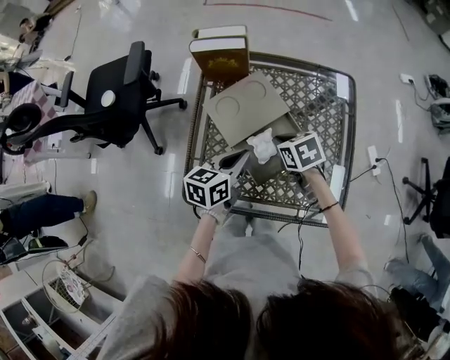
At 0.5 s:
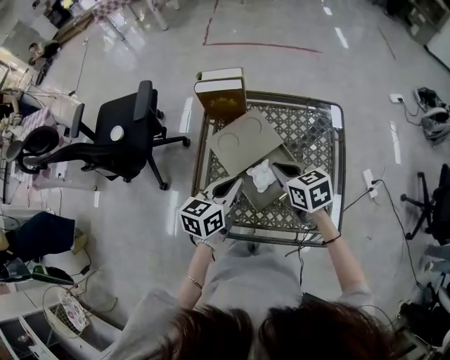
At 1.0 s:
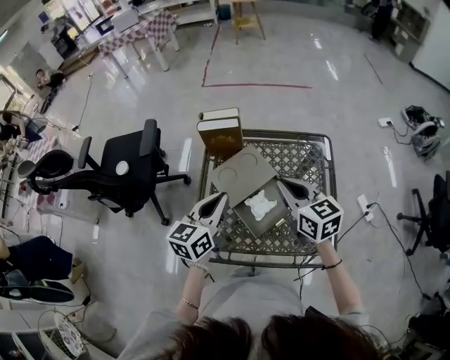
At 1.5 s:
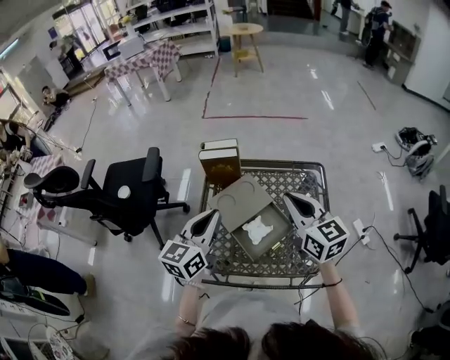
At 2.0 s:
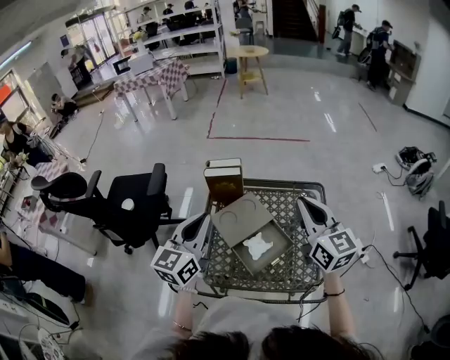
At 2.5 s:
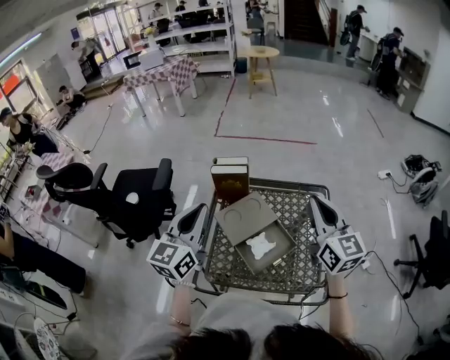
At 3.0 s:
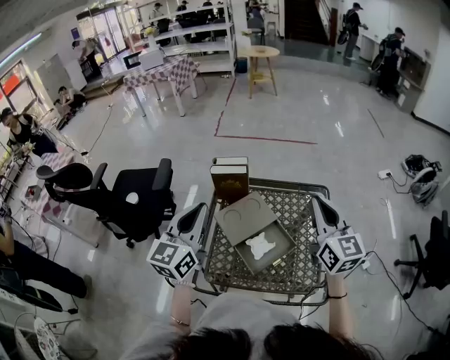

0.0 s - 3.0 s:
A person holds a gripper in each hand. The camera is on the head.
0.0 s - 1.5 s: Both grippers move upward, about 25 cm. The right gripper angles its fingers upward, by roughly 50 degrees. Meanwhile the left gripper swivels approximately 30 degrees.
1.5 s - 3.0 s: The left gripper goes approximately 10 cm upward, while the right gripper travels upward and to the right by roughly 10 cm.

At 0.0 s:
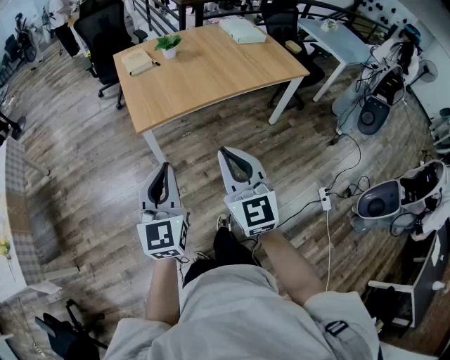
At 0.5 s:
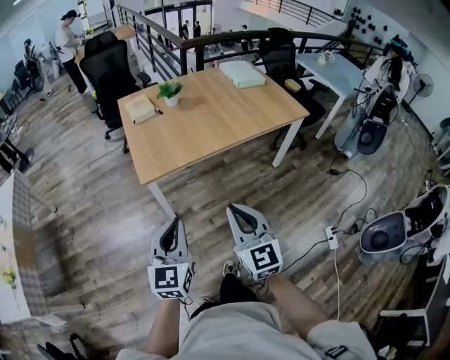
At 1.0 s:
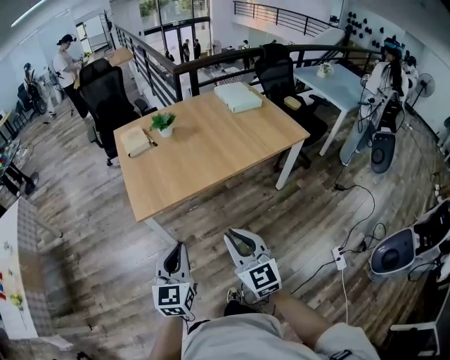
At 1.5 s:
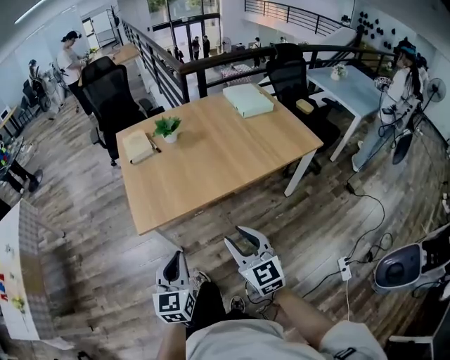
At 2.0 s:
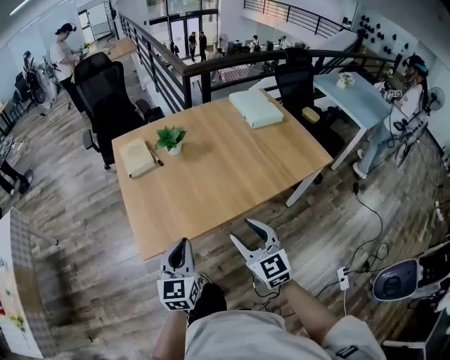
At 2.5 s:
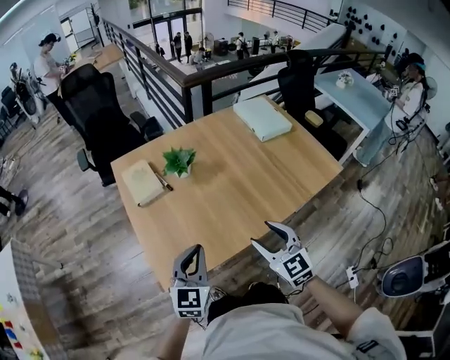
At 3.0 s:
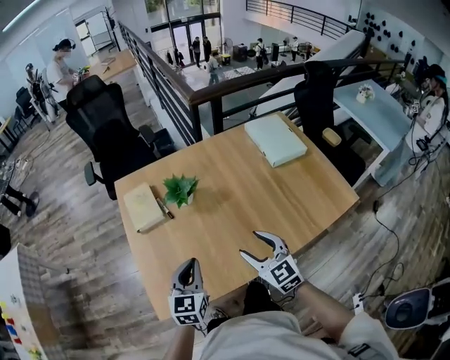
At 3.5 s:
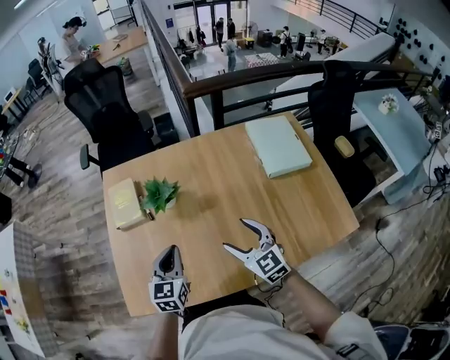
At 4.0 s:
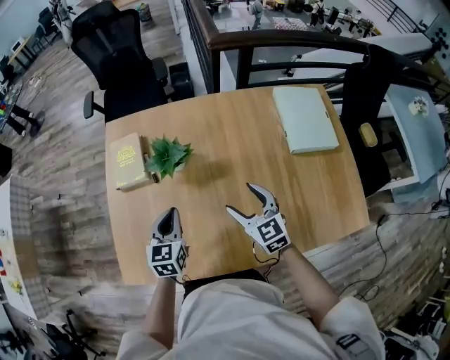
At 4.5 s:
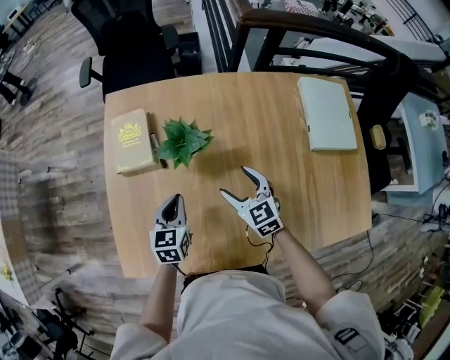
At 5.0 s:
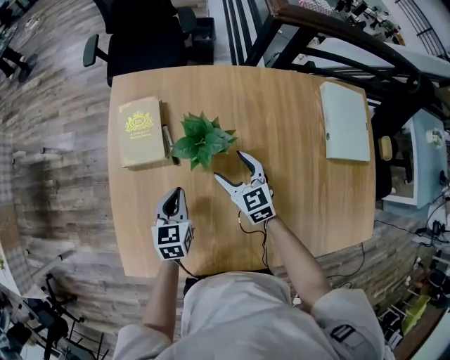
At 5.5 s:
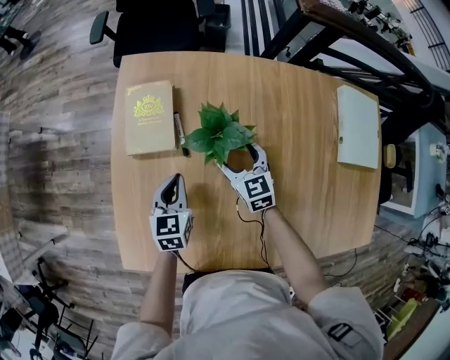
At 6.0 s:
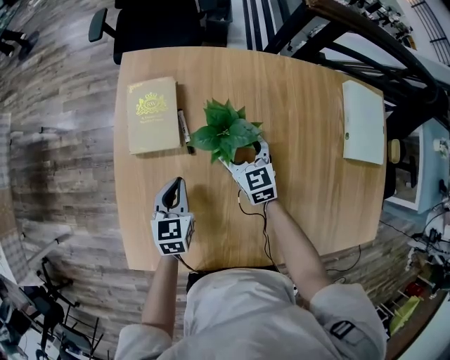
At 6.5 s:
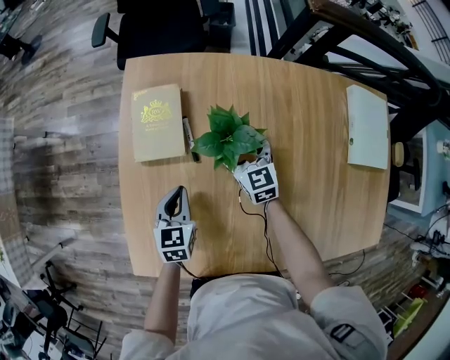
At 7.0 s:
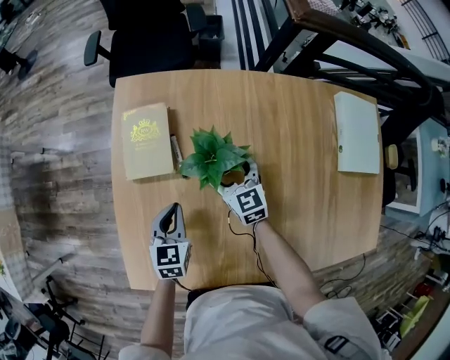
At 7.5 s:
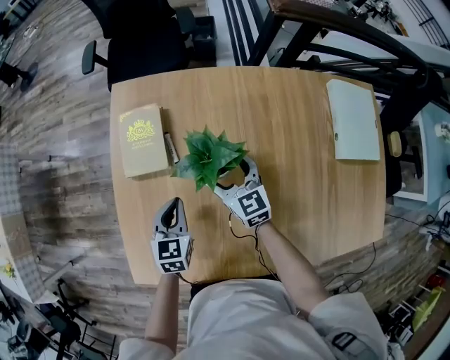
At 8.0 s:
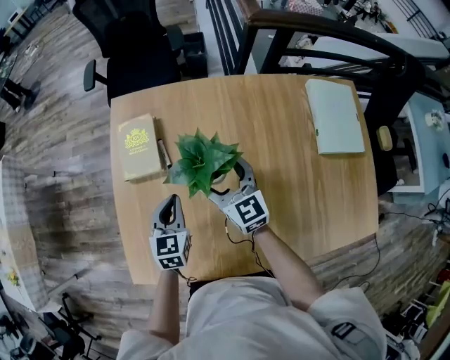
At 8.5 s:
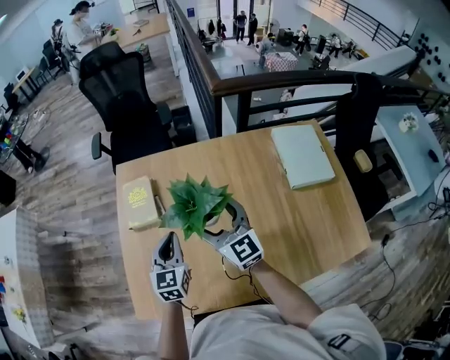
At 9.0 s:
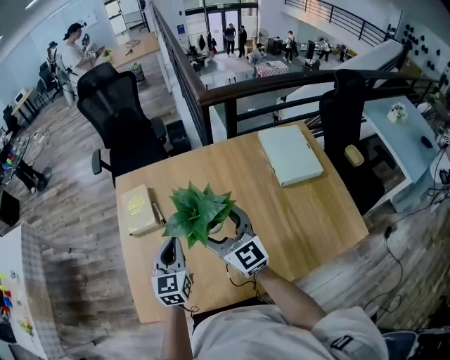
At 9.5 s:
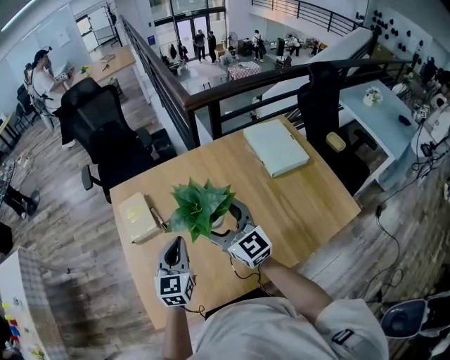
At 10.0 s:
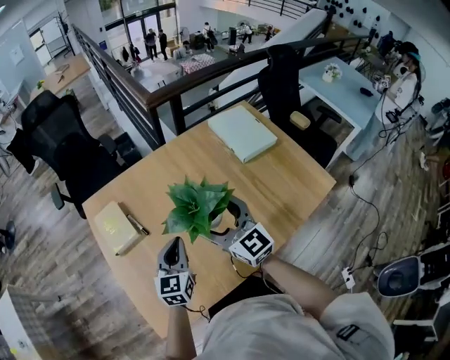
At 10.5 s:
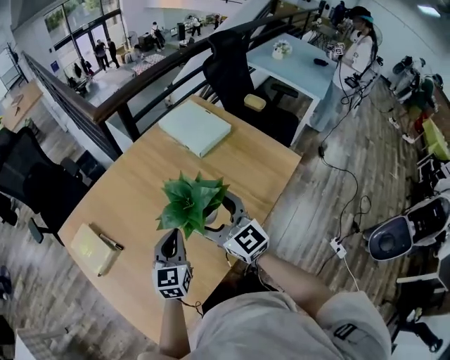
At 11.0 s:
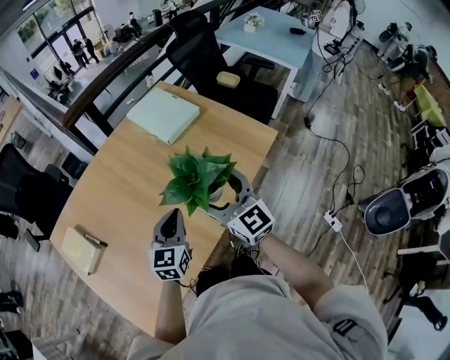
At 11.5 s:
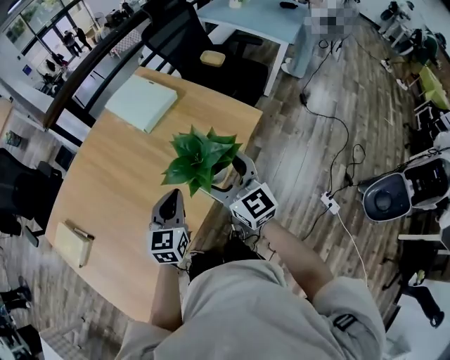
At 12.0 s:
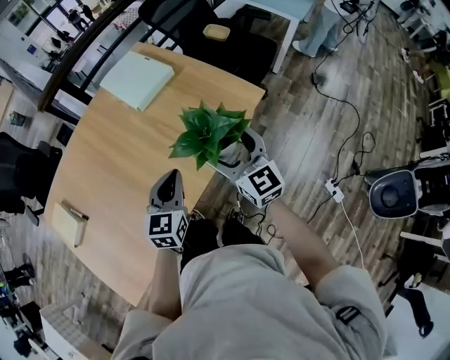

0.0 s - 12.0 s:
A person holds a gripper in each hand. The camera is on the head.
0.0 s - 2.0 s: Both grippers move forward, approximately 35 cm. The right gripper opens its fingers.
2.0 s - 4.0 s: The right gripper moves approximately 40 cm, and turns by approximately 20 degrees. The left gripper shifts by approximately 35 cm, and changes its angle by roughly 20 degrees.
4.0 s - 6.0 s: The right gripper heads forward, to the left and downward, covering roughly 30 cm, while the left gripper heads to the left, downward and forward, covering about 20 cm.
6.0 s - 8.0 s: The right gripper travels upward by roughly 15 cm. The left gripper goes about 10 cm upward and to the right.
8.0 s - 10.0 s: The left gripper moves upward, to the right and backward, about 15 cm, and swivels approximately 30 degrees, while the right gripper travels upward, backward and to the right by approximately 25 cm, and swivels about 20 degrees.
10.0 s - 12.0 s: The right gripper ends up some 40 cm from where it was, and turns by roughly 30 degrees; the left gripper moves about 40 cm, and rotates about 30 degrees.

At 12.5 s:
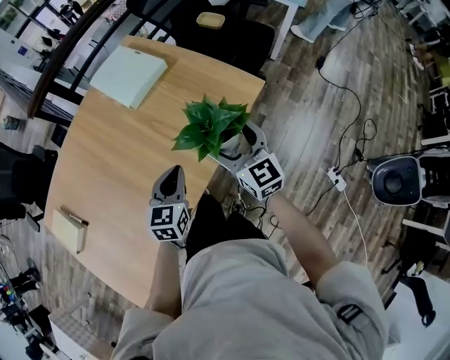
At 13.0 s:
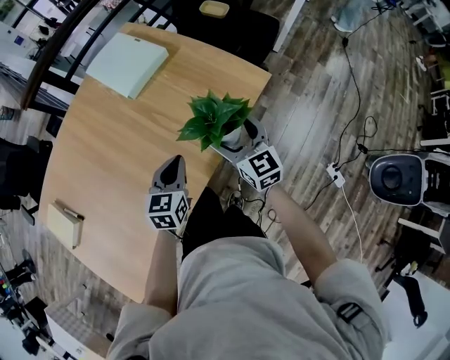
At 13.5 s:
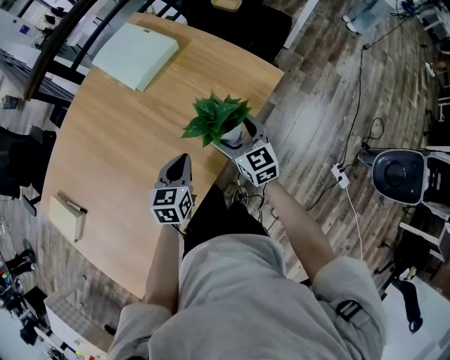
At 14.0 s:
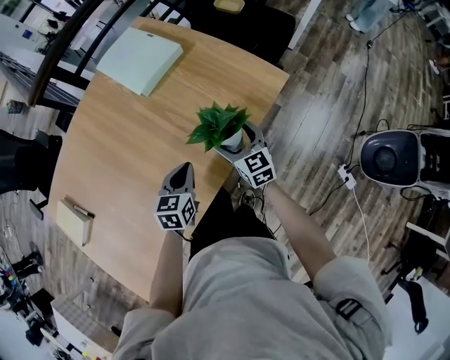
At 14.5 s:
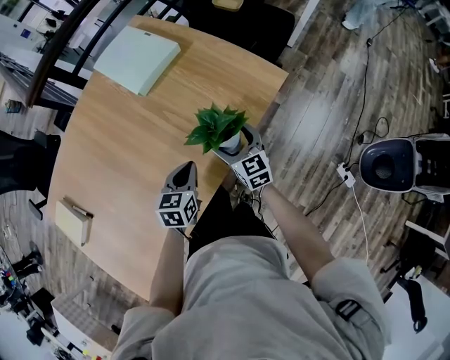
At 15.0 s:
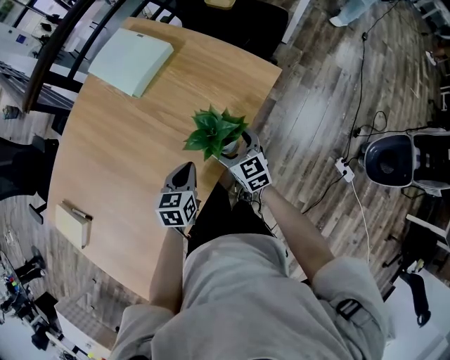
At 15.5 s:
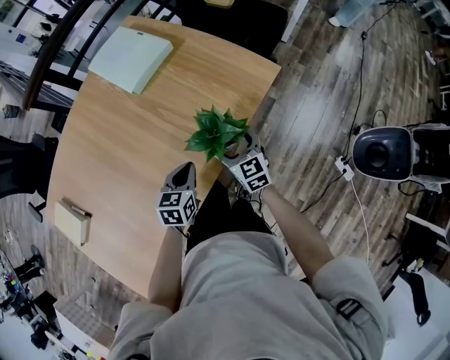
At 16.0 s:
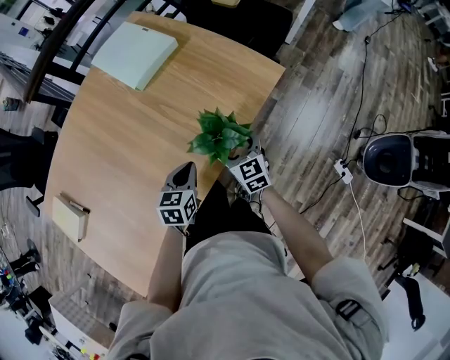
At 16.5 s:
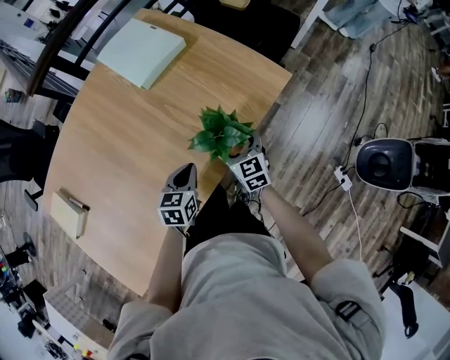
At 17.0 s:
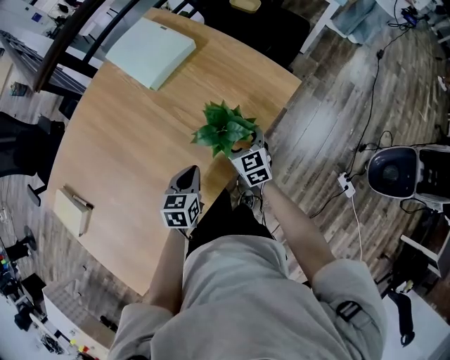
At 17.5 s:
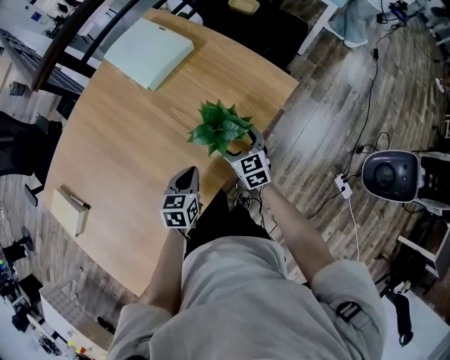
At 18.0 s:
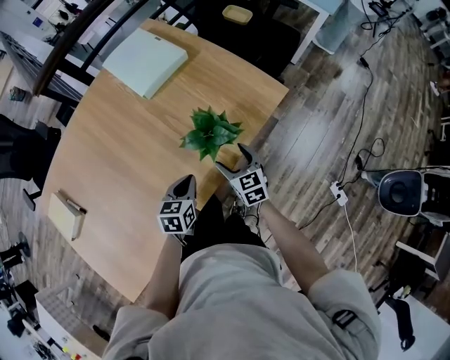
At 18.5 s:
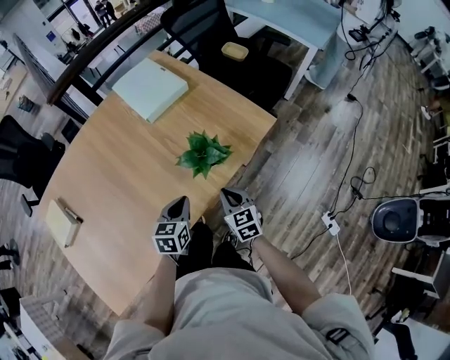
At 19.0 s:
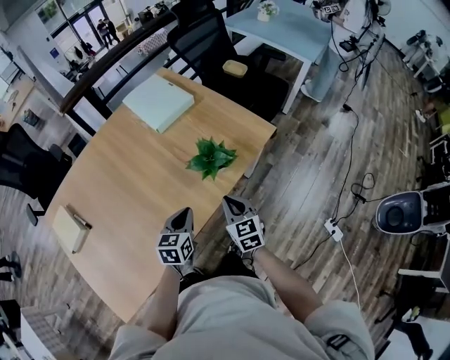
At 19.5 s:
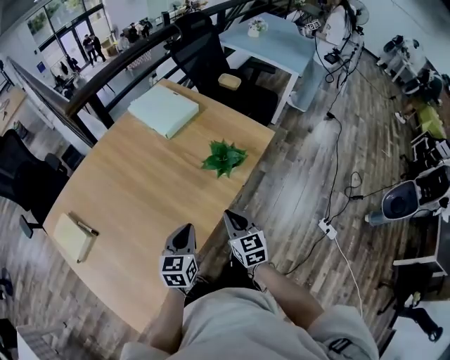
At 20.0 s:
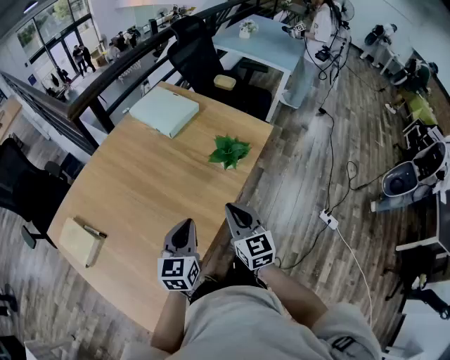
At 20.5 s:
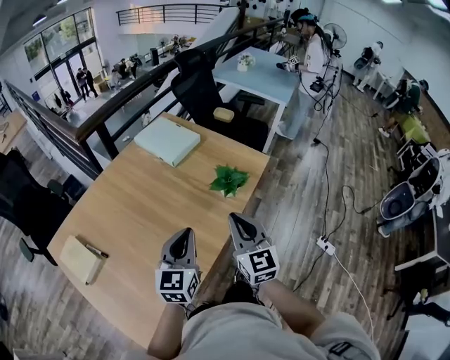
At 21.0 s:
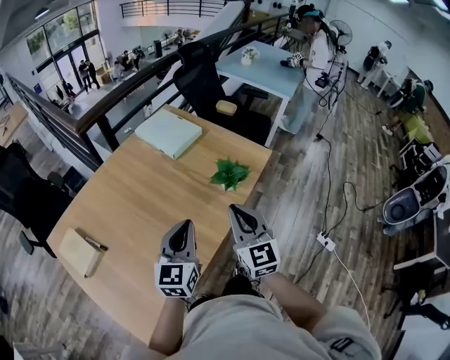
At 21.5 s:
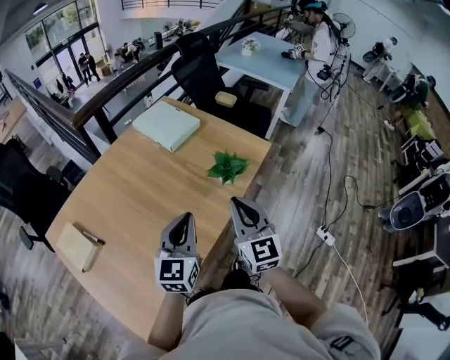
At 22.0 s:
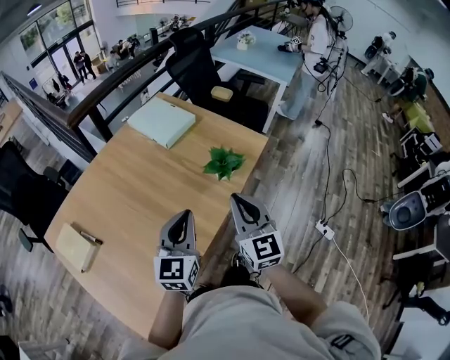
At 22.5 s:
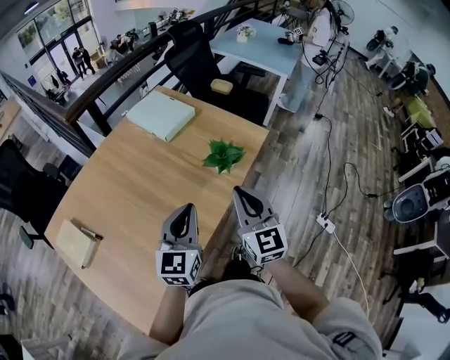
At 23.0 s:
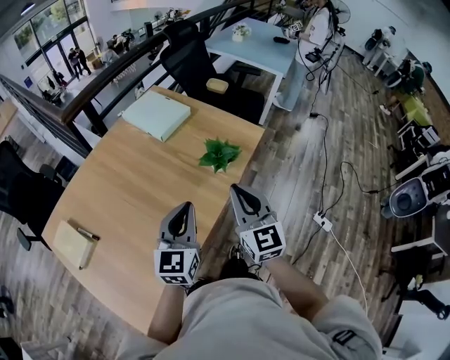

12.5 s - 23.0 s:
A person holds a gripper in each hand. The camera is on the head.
12.5 s - 14.5 s: The right gripper shifts some 15 cm downward, while the left gripper shifts approximately 10 cm downward.
14.5 s - 16.5 s: The grippers move only a little.
16.5 s - 19.0 s: The left gripper heads upward and backward, covering about 10 cm; the right gripper goes roughly 15 cm backward and upward, and closes its fingers.
19.0 s - 21.0 s: The grippers both shift upward and to the left by about 25 cm. The left gripper turns by approximately 30 degrees; the right gripper turns by some 30 degrees.
21.0 s - 23.0 s: The grippers stay close to where they were, moving slightly.

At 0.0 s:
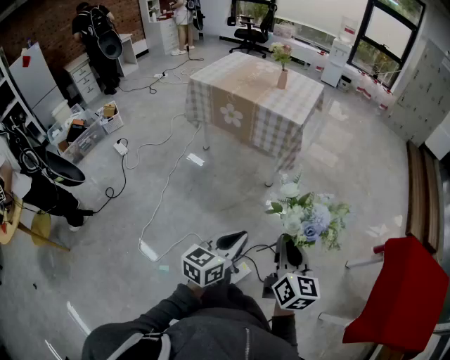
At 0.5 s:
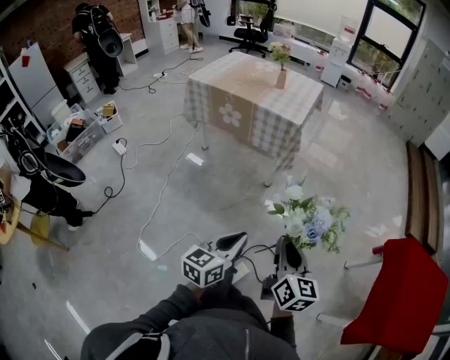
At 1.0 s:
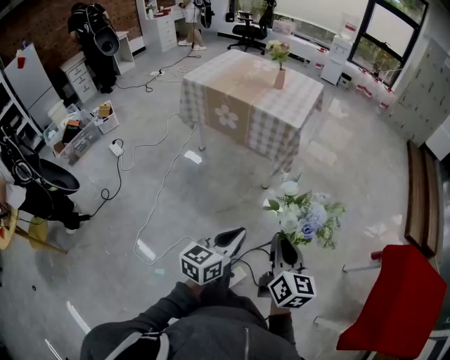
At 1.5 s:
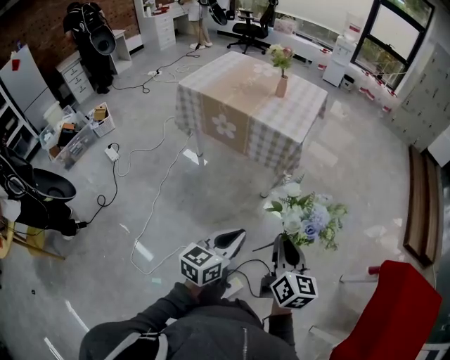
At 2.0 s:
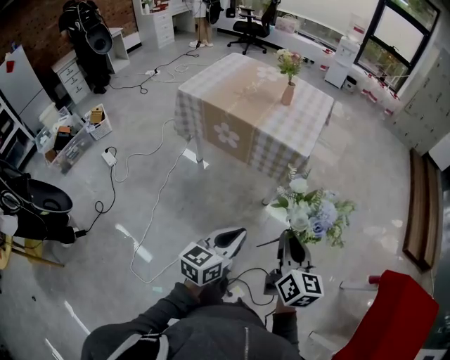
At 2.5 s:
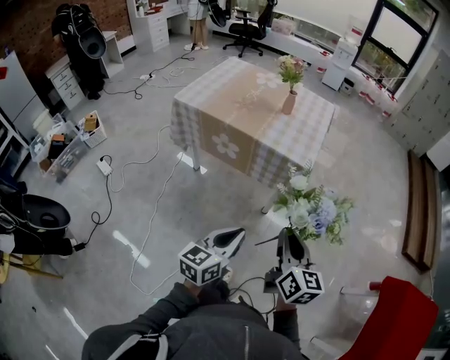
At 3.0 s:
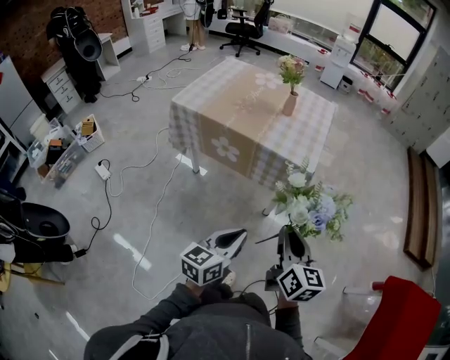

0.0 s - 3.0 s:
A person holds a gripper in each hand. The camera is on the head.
0.0 s - 1.5 s: The grippers both shift forward by about 15 cm.
1.5 s - 3.0 s: The grippers both shift forward and to the left by some 20 cm.
